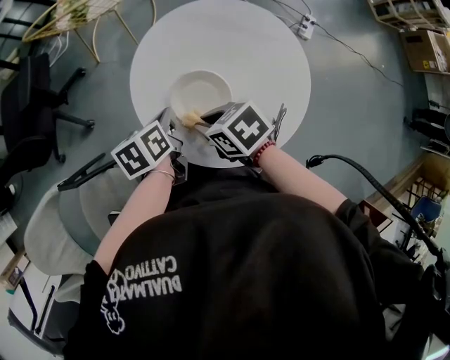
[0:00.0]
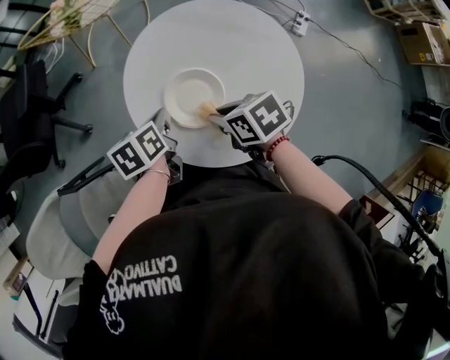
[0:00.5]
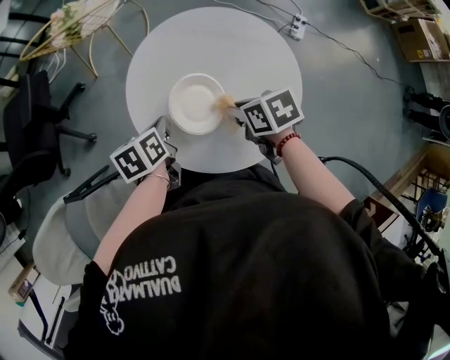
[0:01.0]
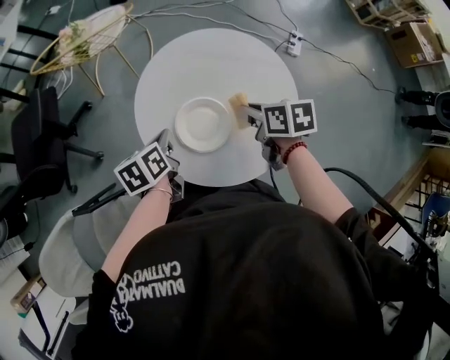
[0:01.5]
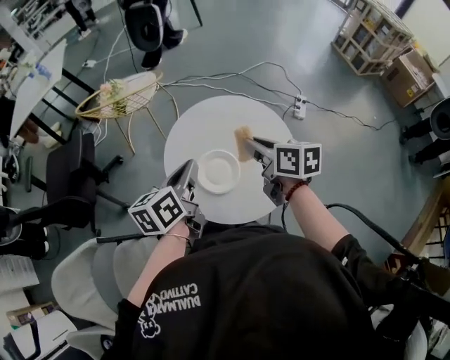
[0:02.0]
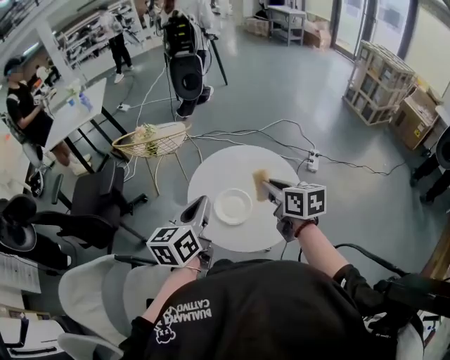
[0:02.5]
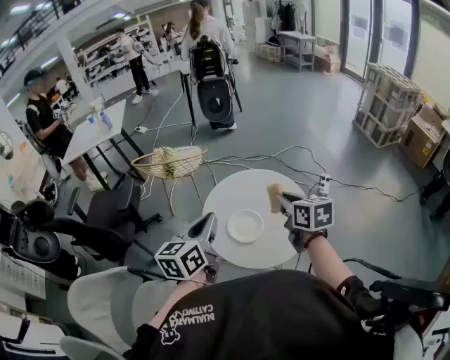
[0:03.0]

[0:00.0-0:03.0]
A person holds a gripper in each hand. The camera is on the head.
0:00.0 to 0:01.5: The right gripper travels to the right by approximately 15 cm, and swivels roughly 40 degrees.
0:01.5 to 0:03.0: The left gripper is displaced upward and backward by roughly 35 cm, and tilts its fingers roughly 40 degrees upward, while the right gripper shifts roughly 25 cm upward, and changes its angle by some 30 degrees.

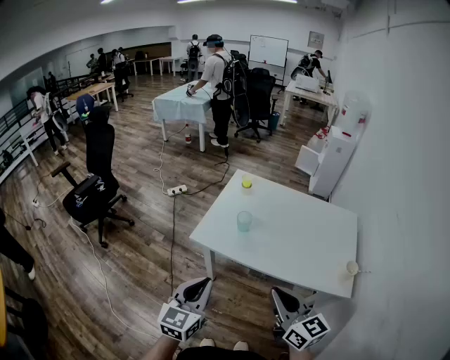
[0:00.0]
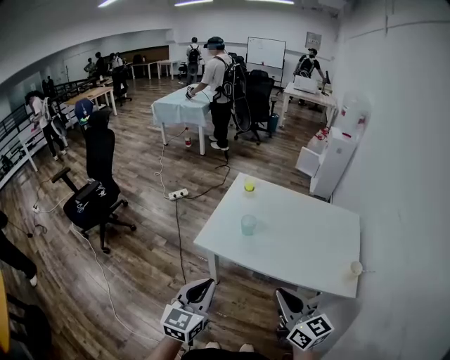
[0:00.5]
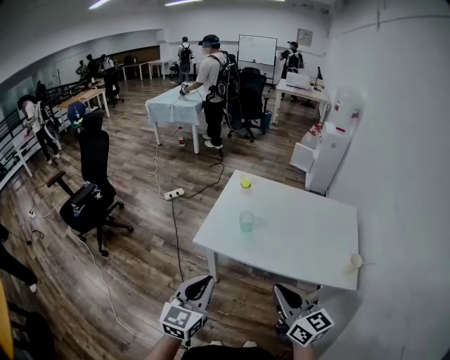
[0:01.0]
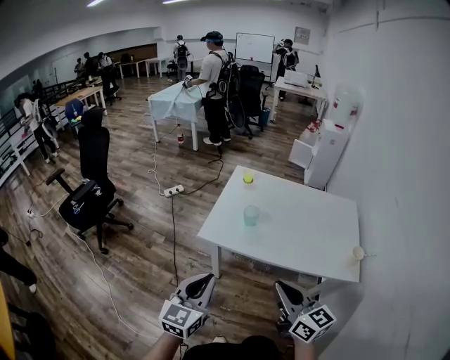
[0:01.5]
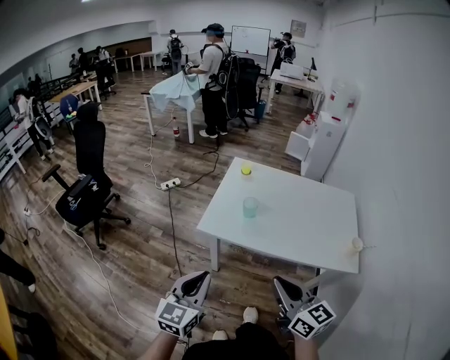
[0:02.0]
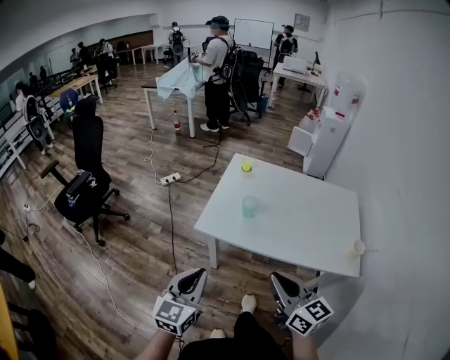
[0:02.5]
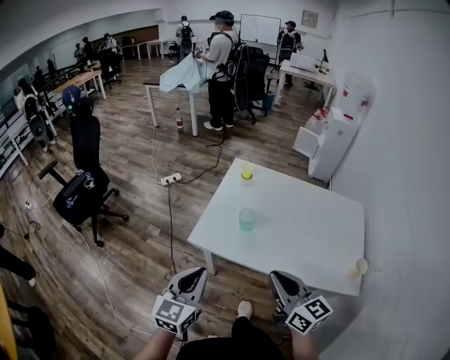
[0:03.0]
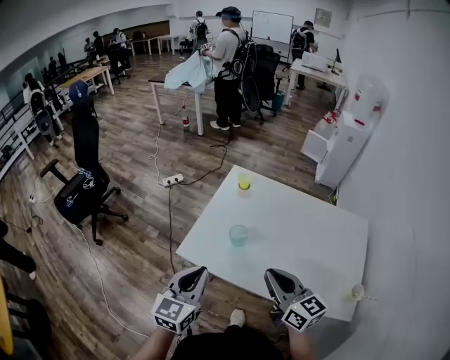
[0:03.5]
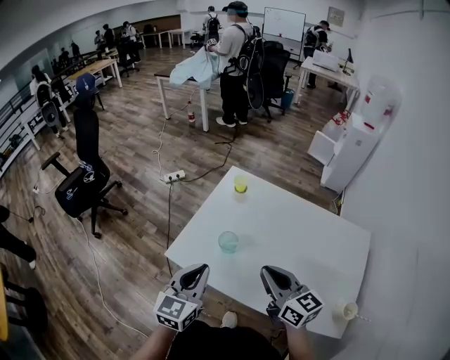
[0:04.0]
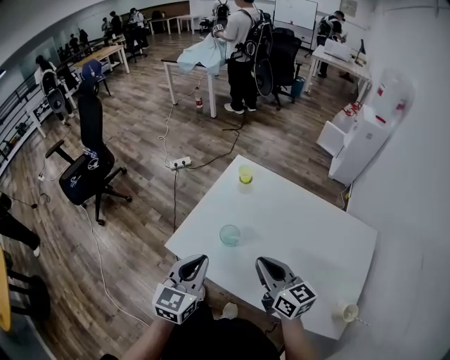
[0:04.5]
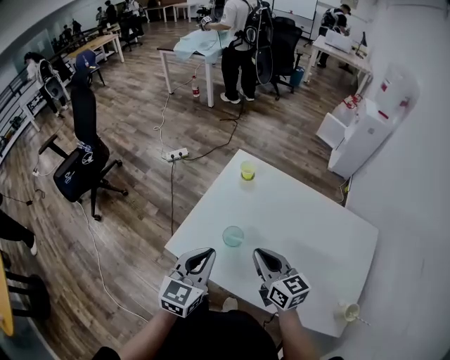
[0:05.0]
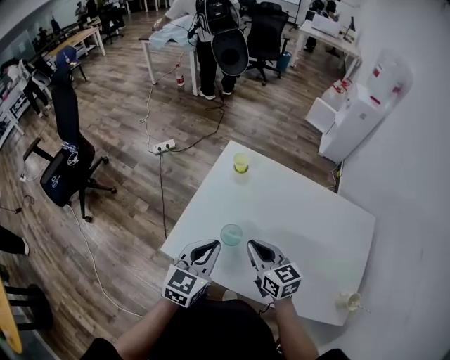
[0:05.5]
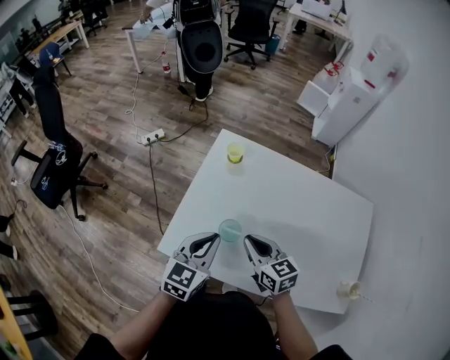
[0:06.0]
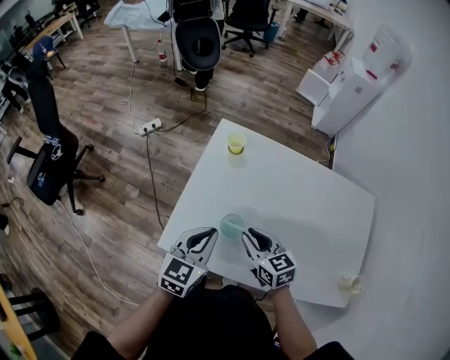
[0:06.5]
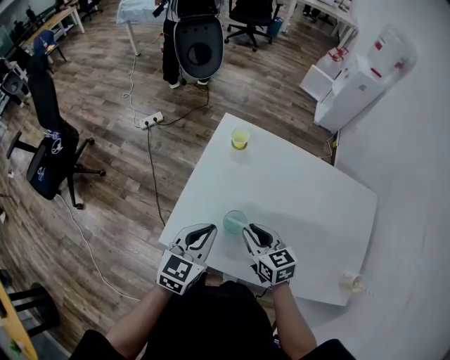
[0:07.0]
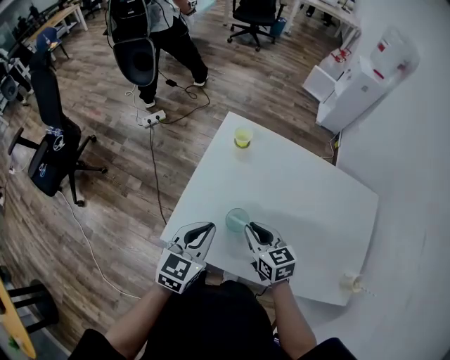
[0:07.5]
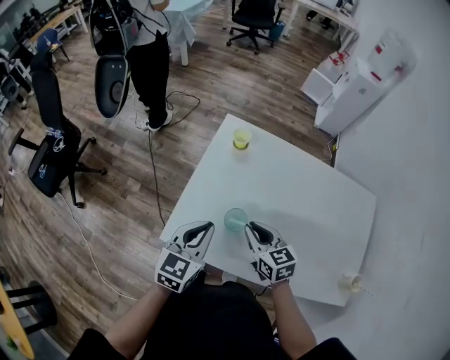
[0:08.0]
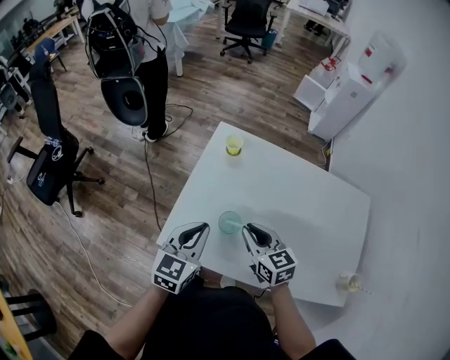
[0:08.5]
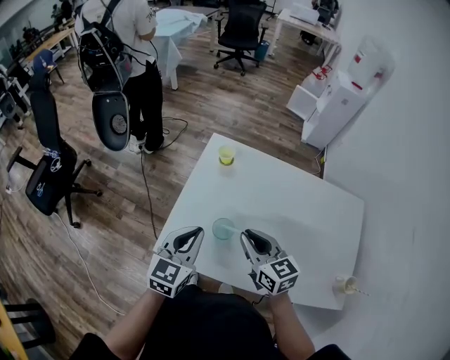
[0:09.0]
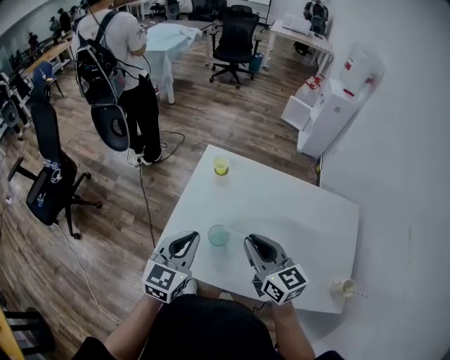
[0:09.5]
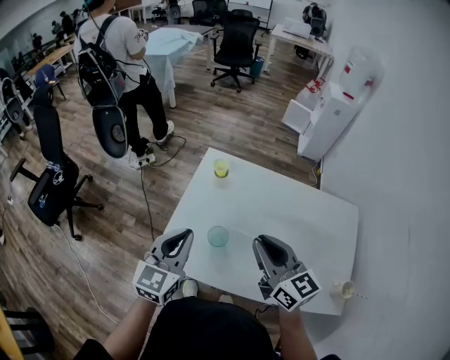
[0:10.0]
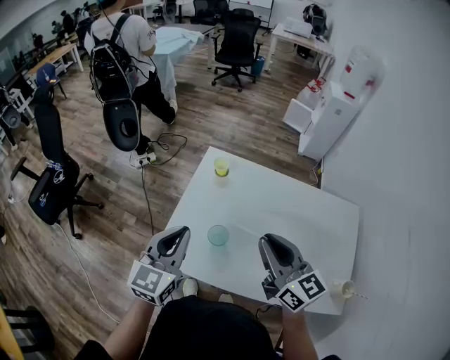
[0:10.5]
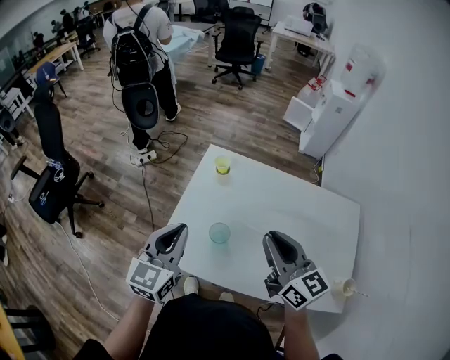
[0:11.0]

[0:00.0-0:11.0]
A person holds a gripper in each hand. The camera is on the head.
0:00.0 to 0:02.0: The grippers both shift to the left by some 5 cm.
0:02.0 to 0:03.5: The right gripper moves forward, approximately 20 cm. Meanwhile the left gripper travels forward and to the right by about 20 cm.
0:03.5 to 0:05.5: The right gripper shifts approximately 20 cm forward and downward; the left gripper travels forward, to the right and downward by roughly 15 cm.
0:05.5 to 0:07.5: The left gripper moves some 5 cm. The right gripper travels downward by approximately 5 cm.
0:07.5 to 0:09.0: The right gripper shifts approximately 10 cm upward.
0:09.0 to 0:11.0: The right gripper travels upward and to the right by some 15 cm, while the left gripper is displaced upward by about 10 cm.

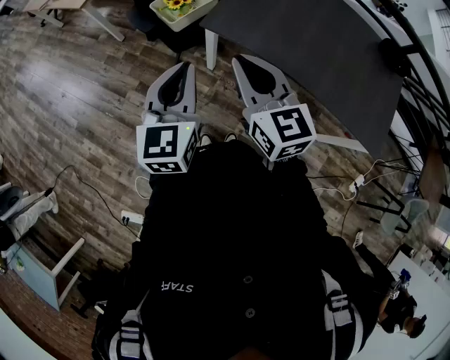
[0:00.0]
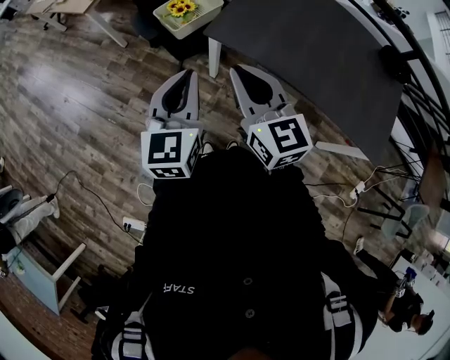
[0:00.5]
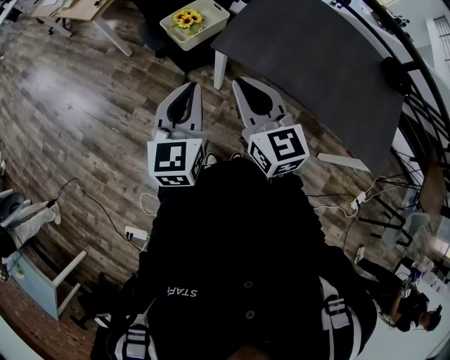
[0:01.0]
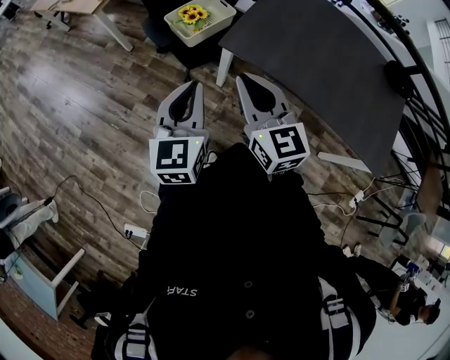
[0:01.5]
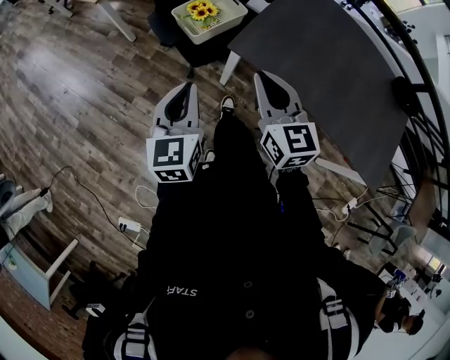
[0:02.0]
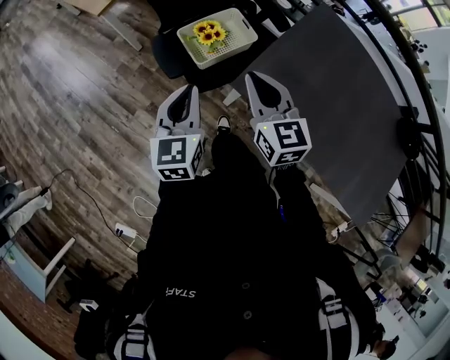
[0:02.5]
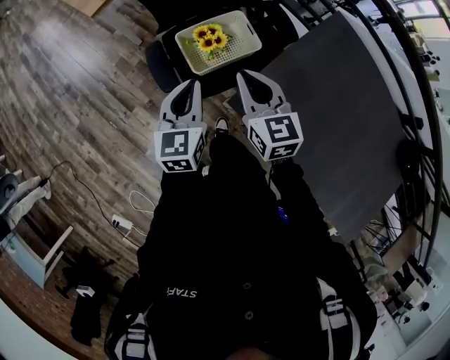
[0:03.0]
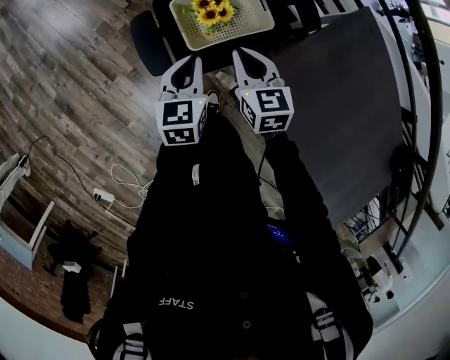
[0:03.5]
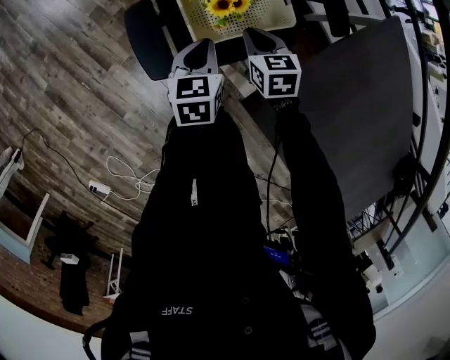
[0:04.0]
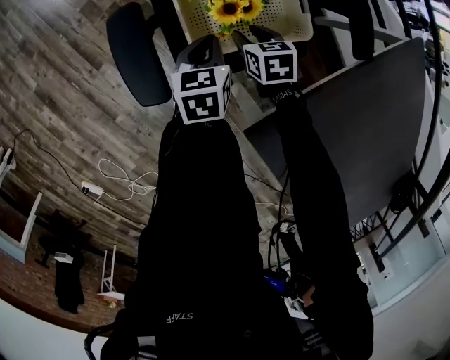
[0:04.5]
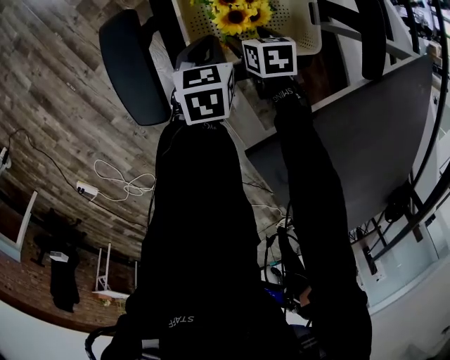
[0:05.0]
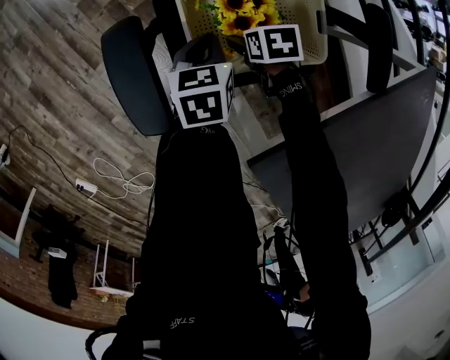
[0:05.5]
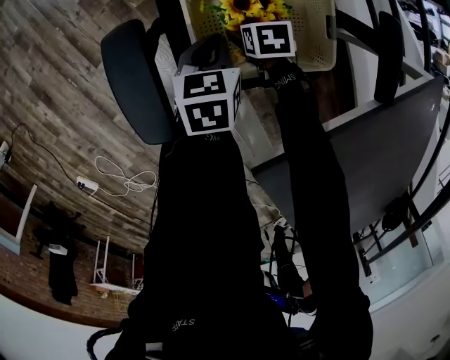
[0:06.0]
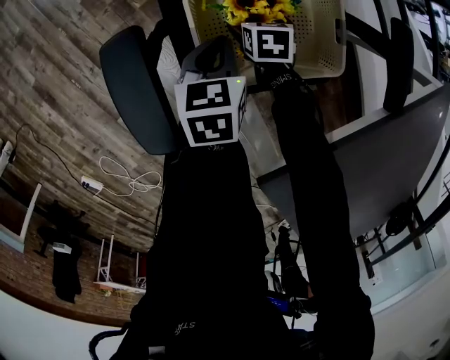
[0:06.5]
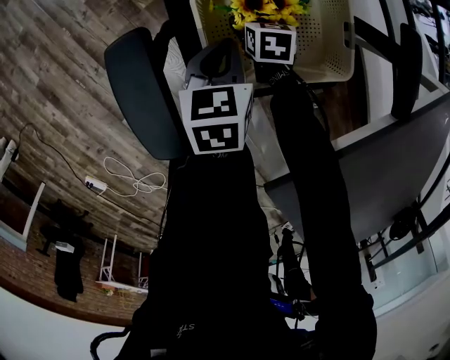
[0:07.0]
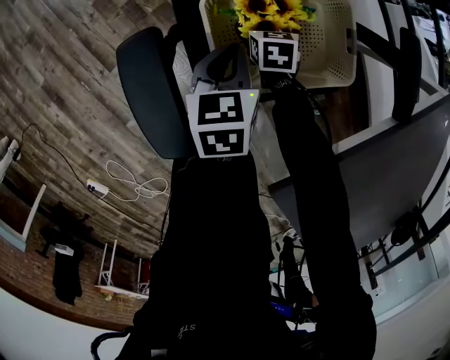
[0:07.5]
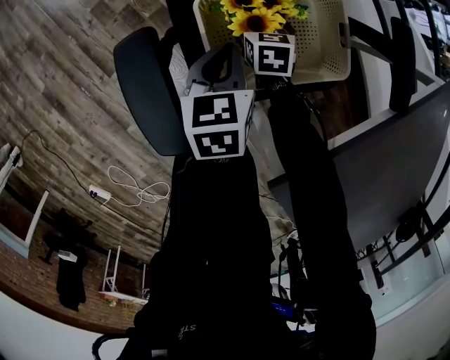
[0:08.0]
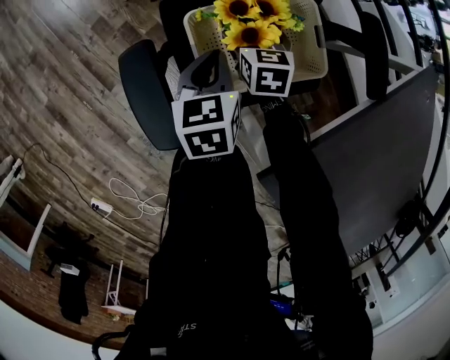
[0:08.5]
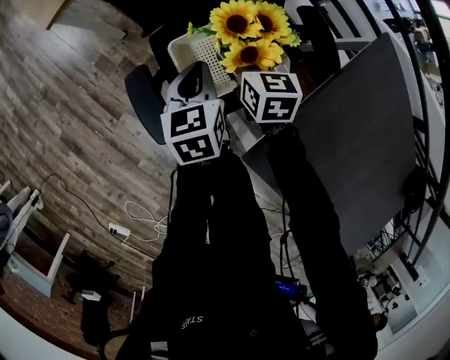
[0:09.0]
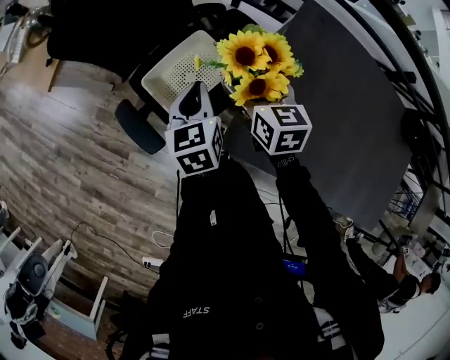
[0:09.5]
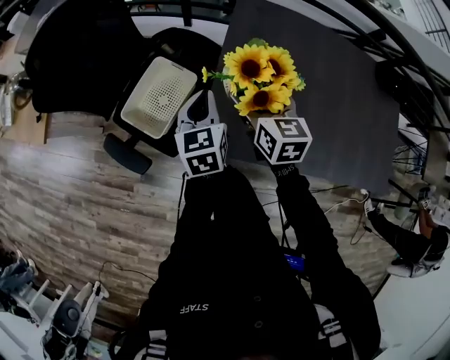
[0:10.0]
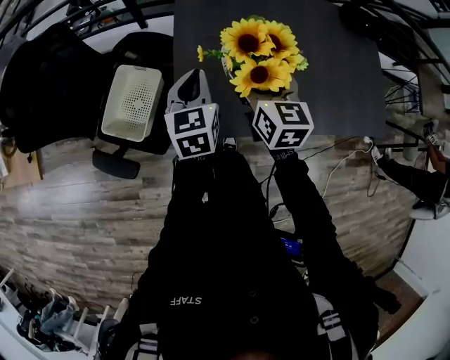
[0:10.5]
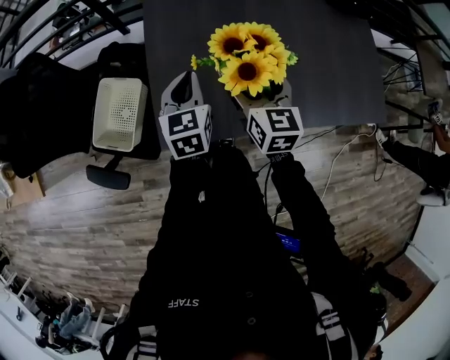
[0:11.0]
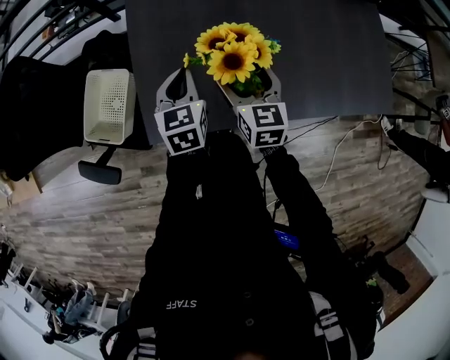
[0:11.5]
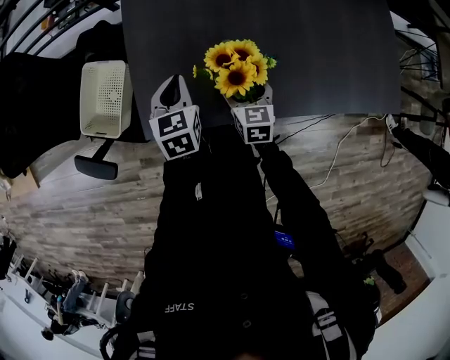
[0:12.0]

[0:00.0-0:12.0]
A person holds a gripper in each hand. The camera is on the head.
0:00.0 to 0:02.0: The left gripper goes roughly 15 cm forward, to the left and downward. Meanwhile the right gripper shifts some 15 cm forward and downward.
0:02.0 to 0:04.0: Both grippers are carried forward, about 40 cm. Both grippers move downward, approximately 35 cm. The left gripper swivels about 30 degrees. Meanwhile the right gripper angles its fingers downward, by some 30 degrees.
0:04.0 to 0:06.0: The right gripper moves downward, about 25 cm, swivels roughly 30 degrees, and opens; the left gripper moves downward, some 15 cm.
0:06.0 to 0:08.0: The right gripper turns by approximately 20 degrees.
0:08.0 to 0:10.0: The grippers both shift upward by some 50 cm. The right gripper changes its angle by about 50 degrees, while the left gripper changes its angle by roughly 40 degrees.
0:10.0 to 0:12.0: Both grippers travel together to the right and downward, some 30 cm. The left gripper swivels about 20 degrees. Meanwhile the right gripper turns by approximately 20 degrees.
